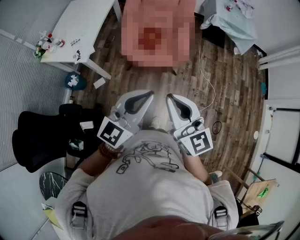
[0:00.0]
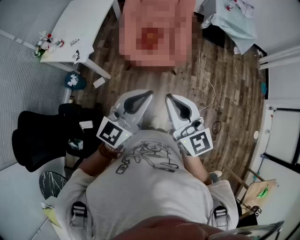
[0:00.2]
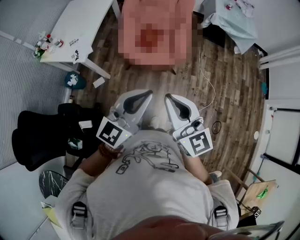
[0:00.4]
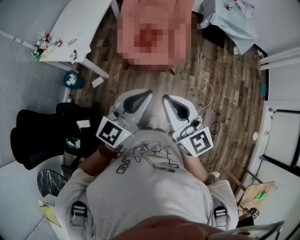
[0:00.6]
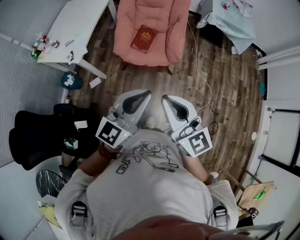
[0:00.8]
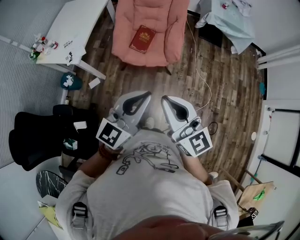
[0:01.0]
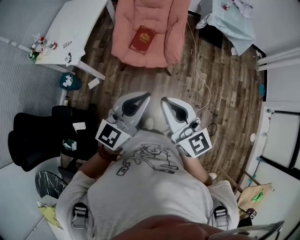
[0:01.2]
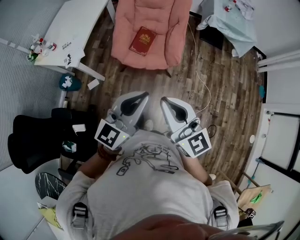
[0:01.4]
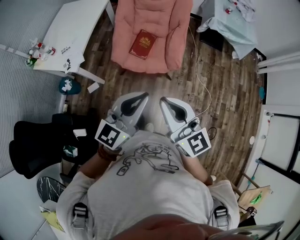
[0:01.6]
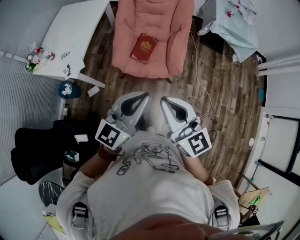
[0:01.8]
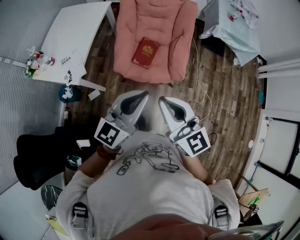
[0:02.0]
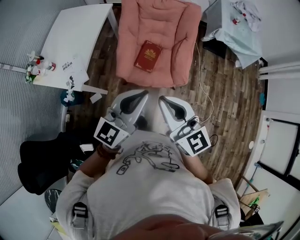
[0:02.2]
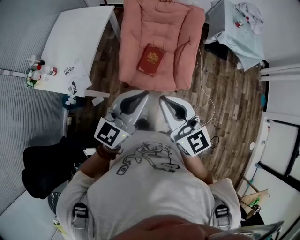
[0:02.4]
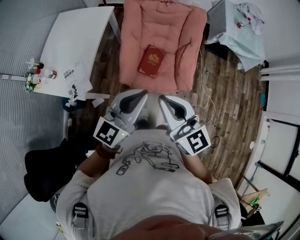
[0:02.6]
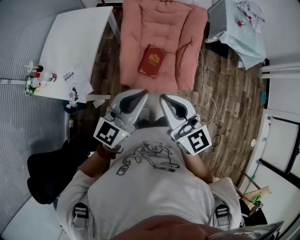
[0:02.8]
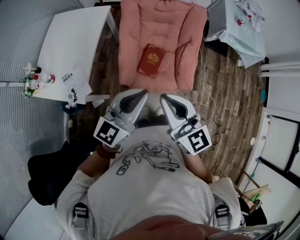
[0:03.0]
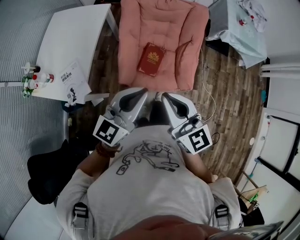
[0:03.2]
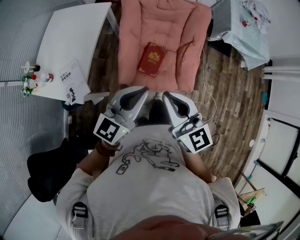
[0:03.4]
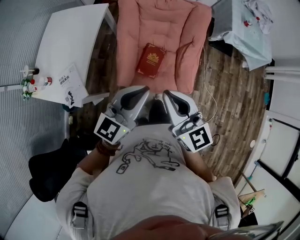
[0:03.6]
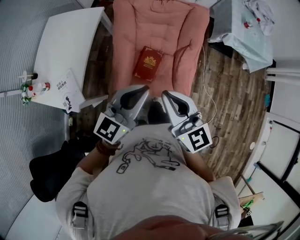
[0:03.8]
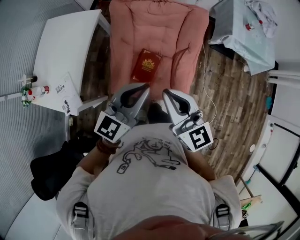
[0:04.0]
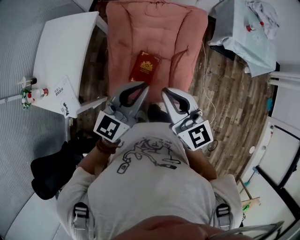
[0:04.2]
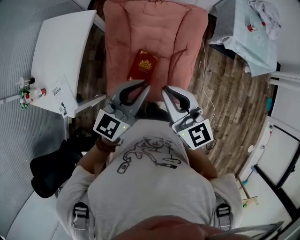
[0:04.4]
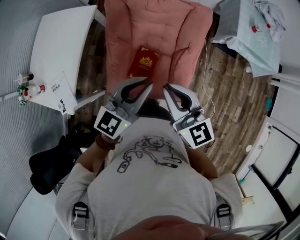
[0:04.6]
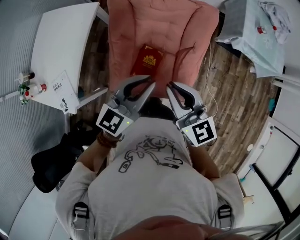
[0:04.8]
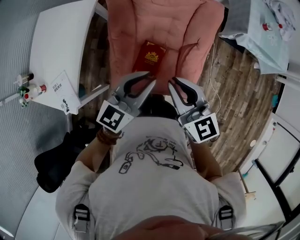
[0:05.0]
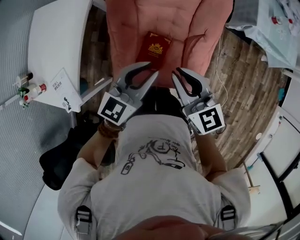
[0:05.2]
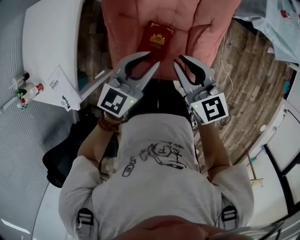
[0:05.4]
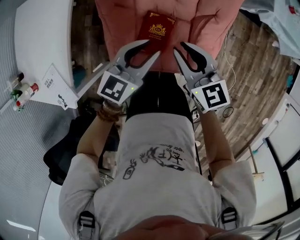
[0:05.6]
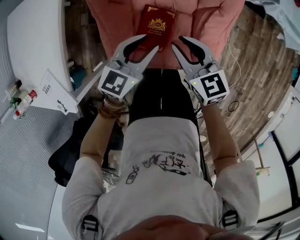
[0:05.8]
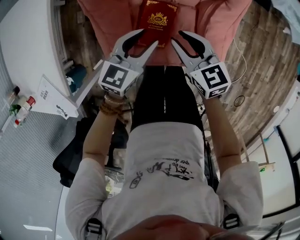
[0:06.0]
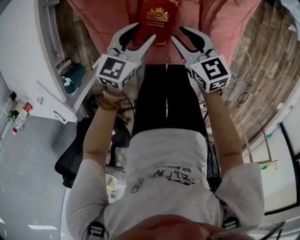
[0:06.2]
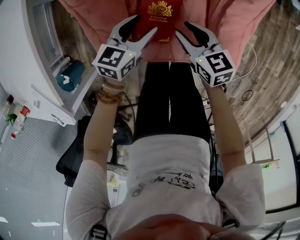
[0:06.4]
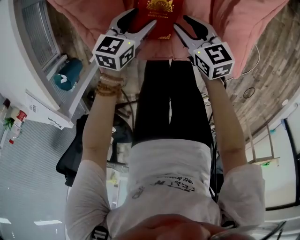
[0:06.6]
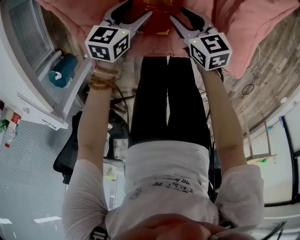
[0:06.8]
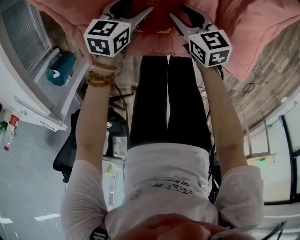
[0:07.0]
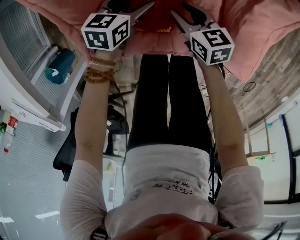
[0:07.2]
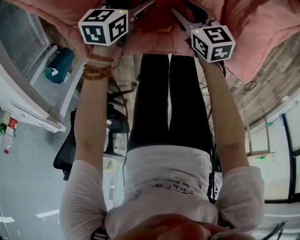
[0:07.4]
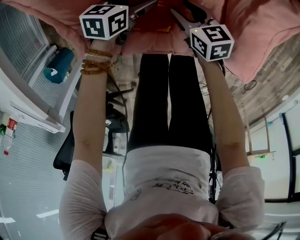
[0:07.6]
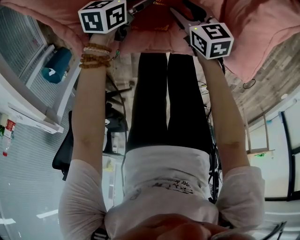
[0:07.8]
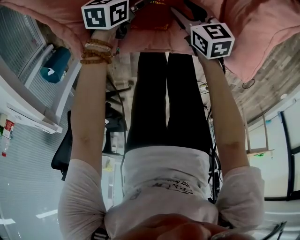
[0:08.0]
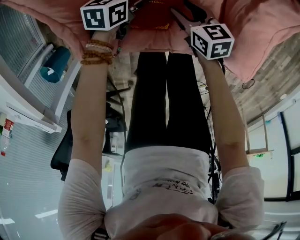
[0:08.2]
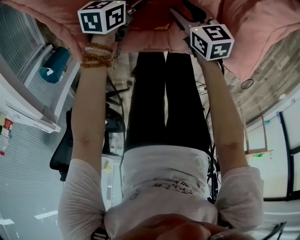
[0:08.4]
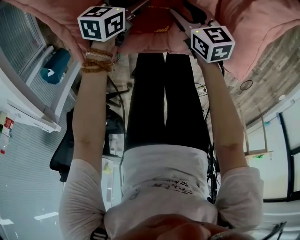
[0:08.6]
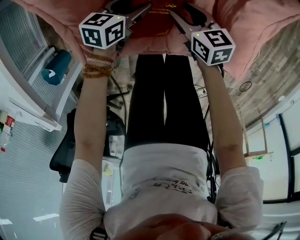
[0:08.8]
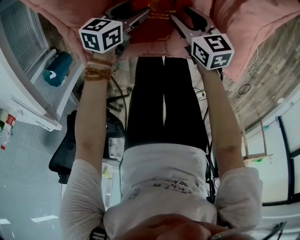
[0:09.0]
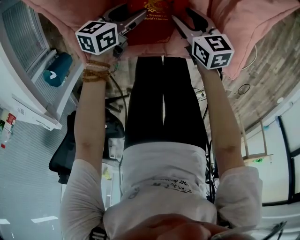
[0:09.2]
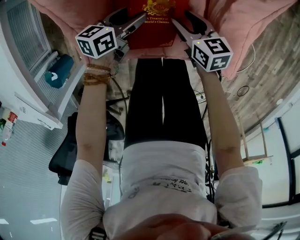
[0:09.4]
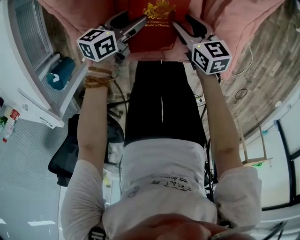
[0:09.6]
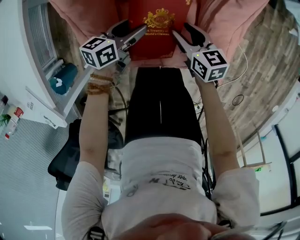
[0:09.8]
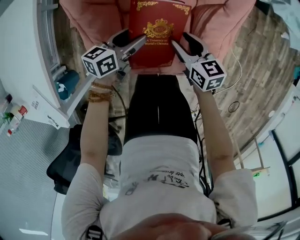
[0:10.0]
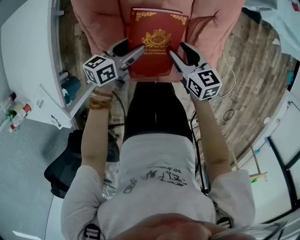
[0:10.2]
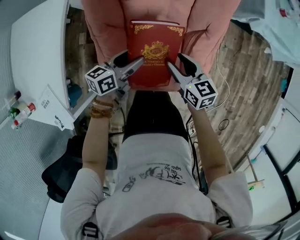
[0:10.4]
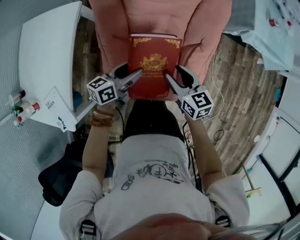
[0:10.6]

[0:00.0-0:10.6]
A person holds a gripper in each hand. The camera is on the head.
0:00.0 to 0:01.6: Both grippers move forward, approximately 10 cm.
0:01.6 to 0:03.0: The two grippers go approximately 30 cm forward and to the left.
0:03.0 to 0:04.6: The grippers both shift forward and to the right by about 30 cm.
0:04.6 to 0:06.0: The grippers both shift downward by some 40 cm. The right gripper rotates about 30 degrees, and opens its fingers. The left gripper changes its angle by roughly 20 degrees.
0:06.0 to 0:07.6: Both grippers move downward, about 35 cm. The left gripper turns by some 30 degrees, and opens its fingers; the right gripper changes its angle by about 20 degrees, and opens.
0:07.6 to 0:09.0: The right gripper heads upward, covering about 5 cm; the left gripper shifts by about 5 cm, and closes its fingers.
0:09.0 to 0:10.6: Both grippers travel together upward, approximately 40 cm. The left gripper changes its angle by approximately 20 degrees.

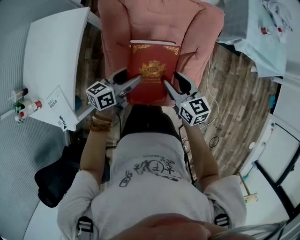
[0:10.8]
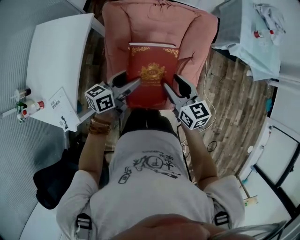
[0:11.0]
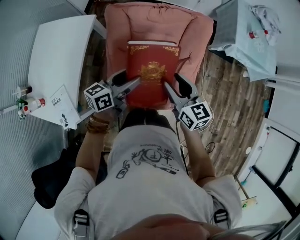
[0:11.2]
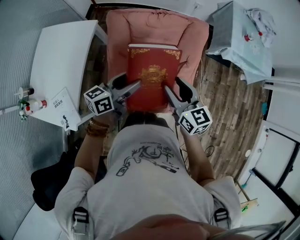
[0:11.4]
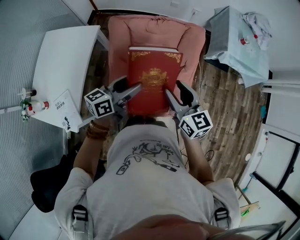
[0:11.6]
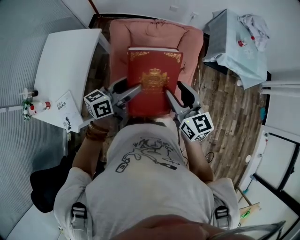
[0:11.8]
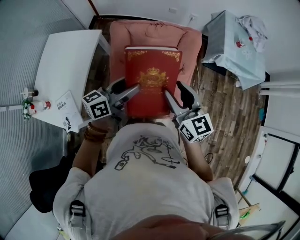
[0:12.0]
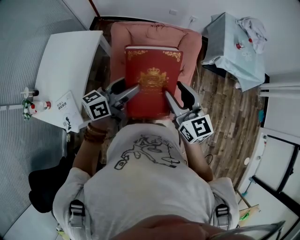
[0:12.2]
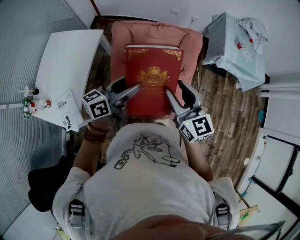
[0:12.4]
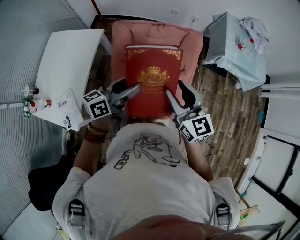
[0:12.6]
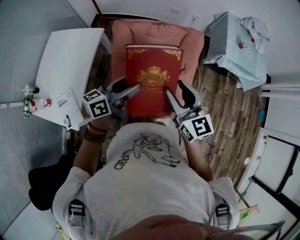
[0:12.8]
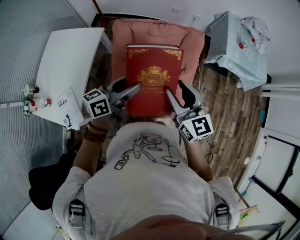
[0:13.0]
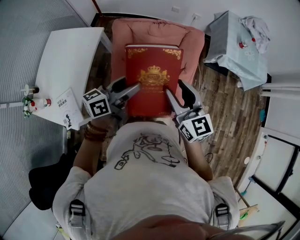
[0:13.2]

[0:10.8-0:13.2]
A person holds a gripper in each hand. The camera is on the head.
0:10.8 to 0:12.0: Both grippers travel together upward, about 25 cm. The right gripper rotates approximately 20 degrees.
0:12.0 to 0:13.2: Both grippers stay put.

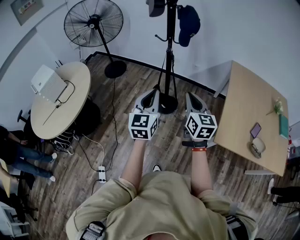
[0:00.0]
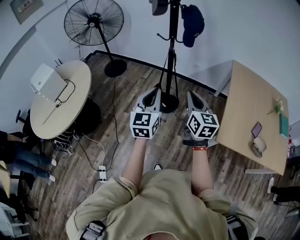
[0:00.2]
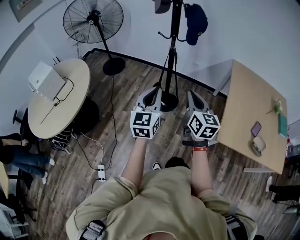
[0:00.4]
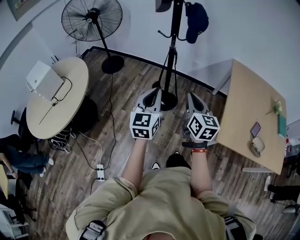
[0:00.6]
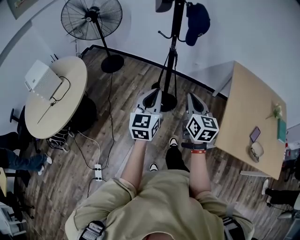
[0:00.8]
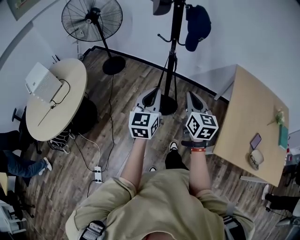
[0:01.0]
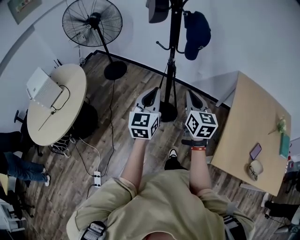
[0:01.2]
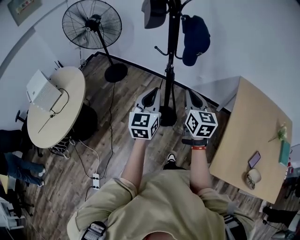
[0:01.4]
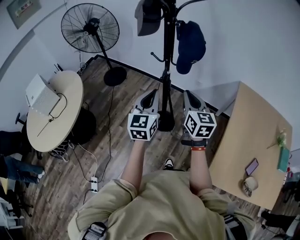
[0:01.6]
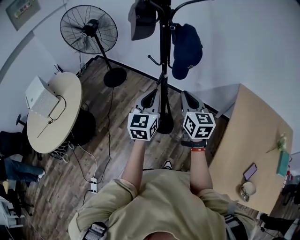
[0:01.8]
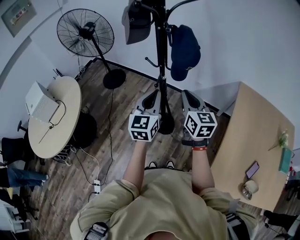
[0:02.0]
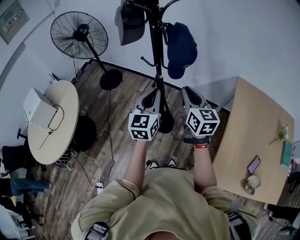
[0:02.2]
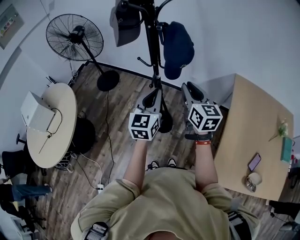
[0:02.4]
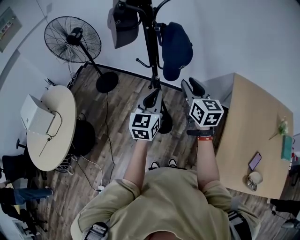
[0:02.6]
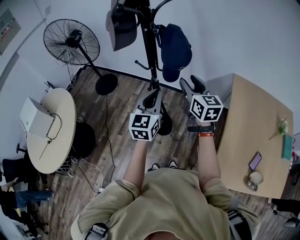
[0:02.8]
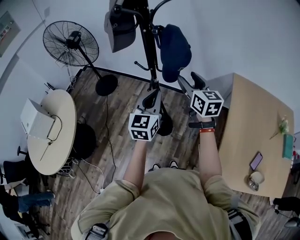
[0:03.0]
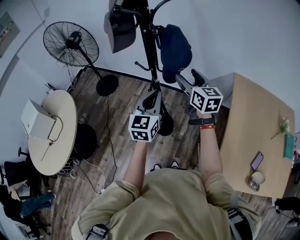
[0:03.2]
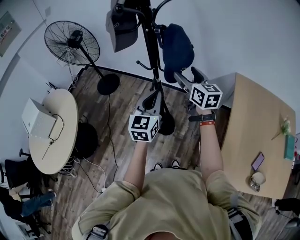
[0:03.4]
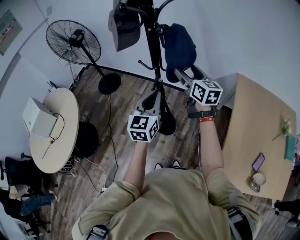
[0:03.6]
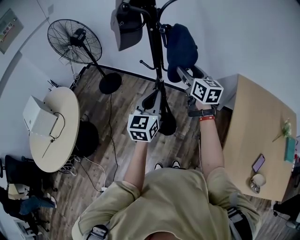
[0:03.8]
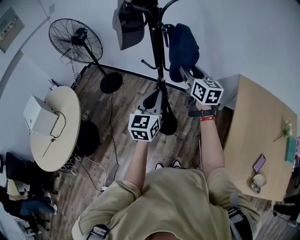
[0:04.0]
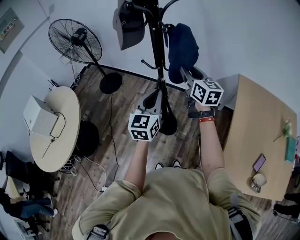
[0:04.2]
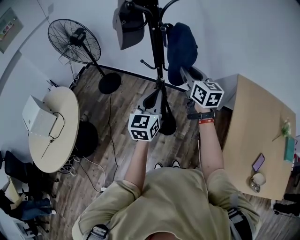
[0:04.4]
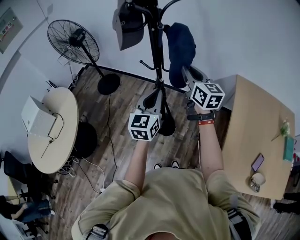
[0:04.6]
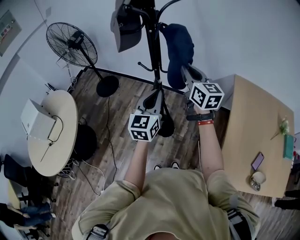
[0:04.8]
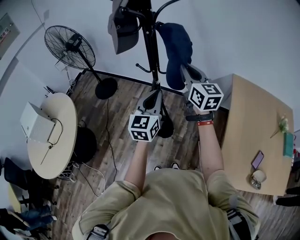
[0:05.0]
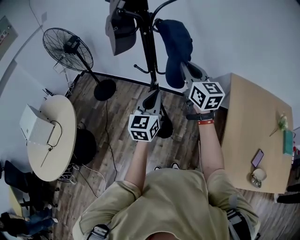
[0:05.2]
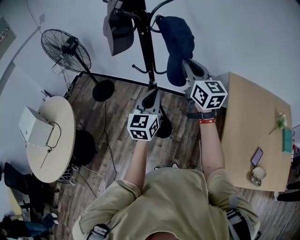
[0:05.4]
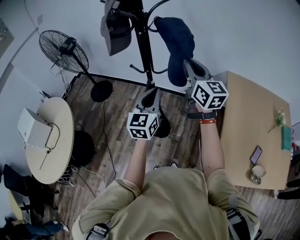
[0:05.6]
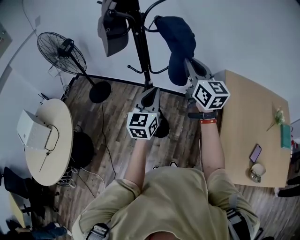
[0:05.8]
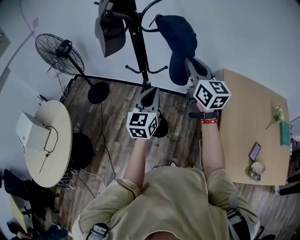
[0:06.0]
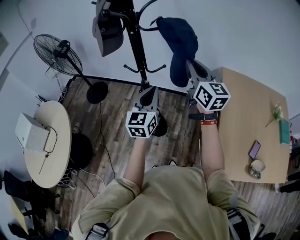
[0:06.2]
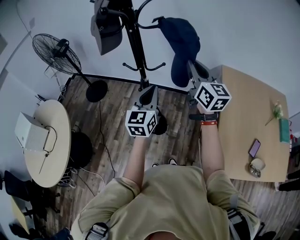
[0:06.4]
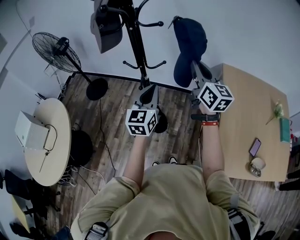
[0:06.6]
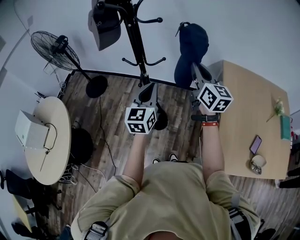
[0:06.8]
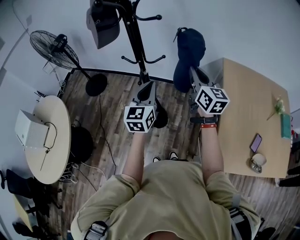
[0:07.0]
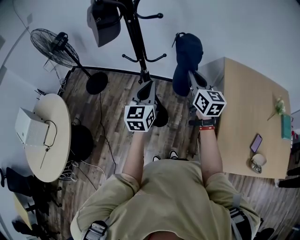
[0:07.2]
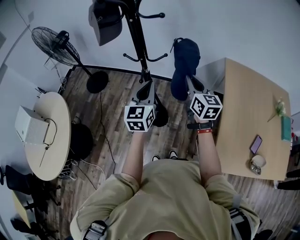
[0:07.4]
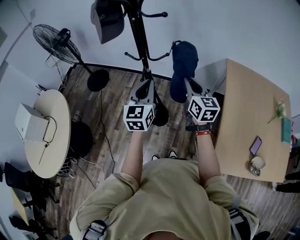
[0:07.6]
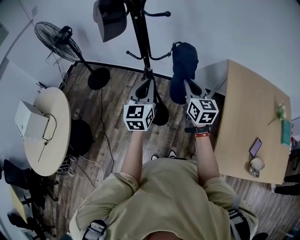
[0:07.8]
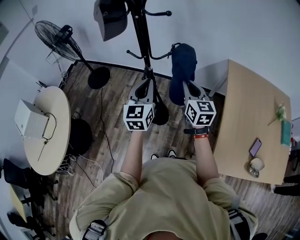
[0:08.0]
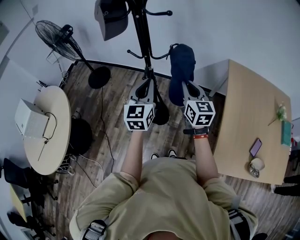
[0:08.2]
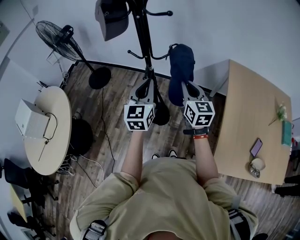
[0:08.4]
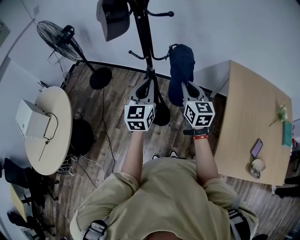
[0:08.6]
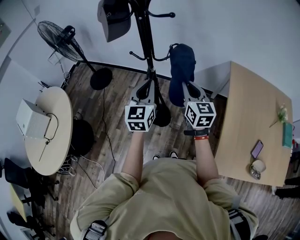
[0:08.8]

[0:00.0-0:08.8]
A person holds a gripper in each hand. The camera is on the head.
0:00.0 to 0:01.4: Both grippers travel together forward, about 25 cm.
0:01.4 to 0:03.0: The grippers both shift forward and to the right by some 20 cm. The right gripper opens.
0:03.0 to 0:04.4: The right gripper closes up.
0:04.4 to 0:05.8: The right gripper travels upward and to the right by approximately 10 cm.
0:05.8 to 0:07.4: The right gripper heads downward, covering about 15 cm.
0:07.4 to 0:08.8: The grippers make only small movements.

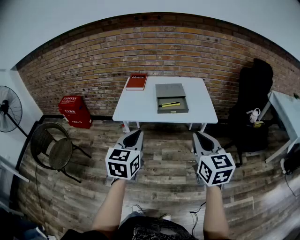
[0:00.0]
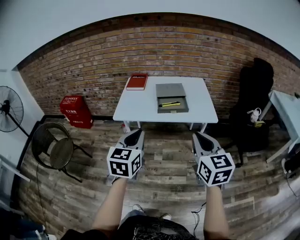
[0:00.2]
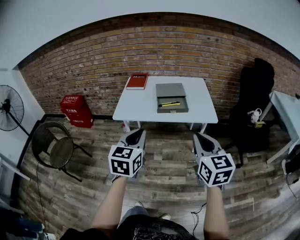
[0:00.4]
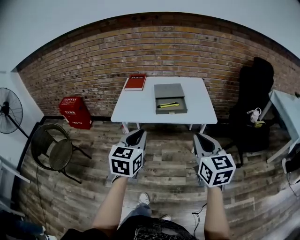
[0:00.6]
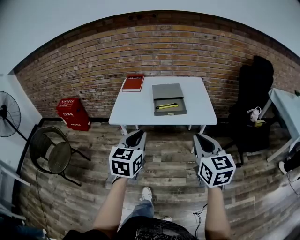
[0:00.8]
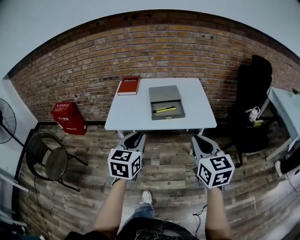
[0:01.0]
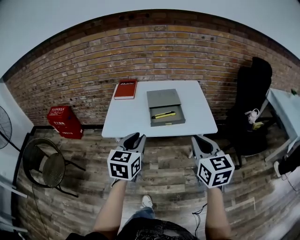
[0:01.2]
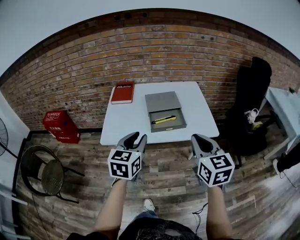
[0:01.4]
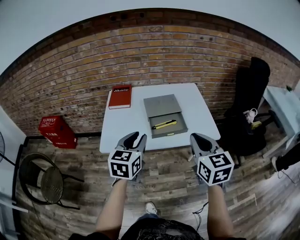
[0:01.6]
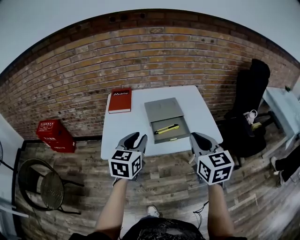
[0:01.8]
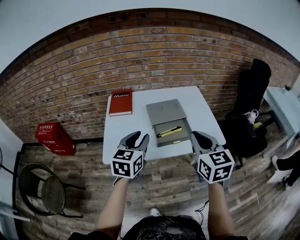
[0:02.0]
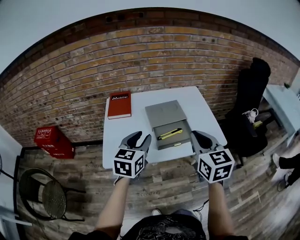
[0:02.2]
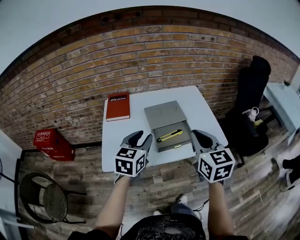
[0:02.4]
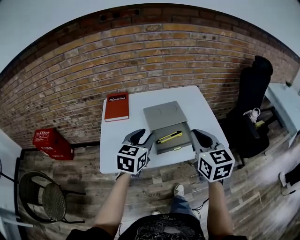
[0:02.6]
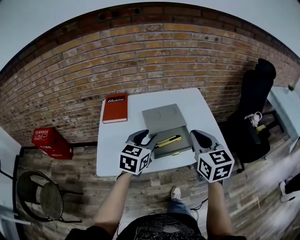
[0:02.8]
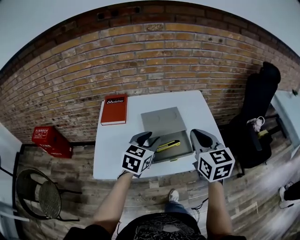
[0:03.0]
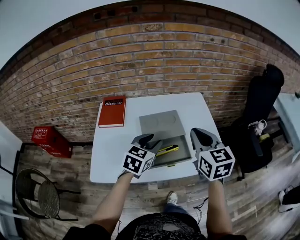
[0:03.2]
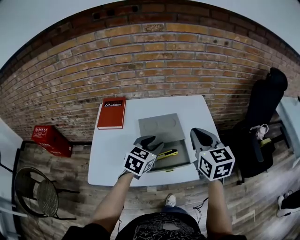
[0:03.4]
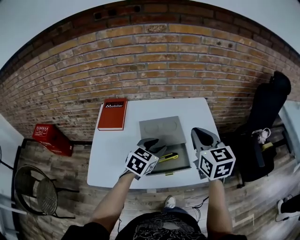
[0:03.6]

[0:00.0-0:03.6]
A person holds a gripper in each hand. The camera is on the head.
0:00.0 to 0:01.8: The two grippers go some 25 cm forward. The left gripper opens up.
0:01.8 to 0:03.6: The left gripper goes some 25 cm forward, downward and to the right, and swivels roughly 20 degrees; the right gripper goes about 25 cm forward.
